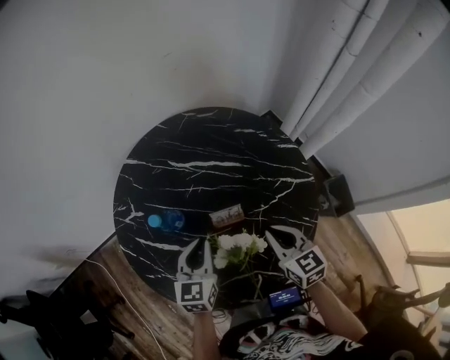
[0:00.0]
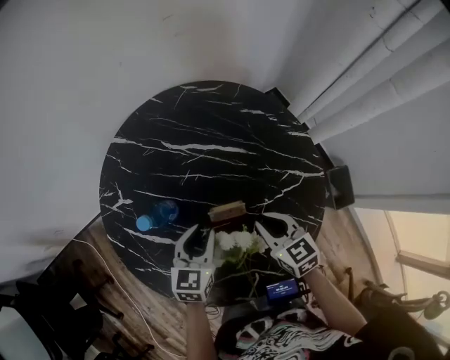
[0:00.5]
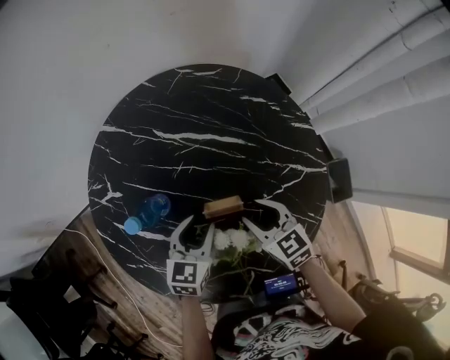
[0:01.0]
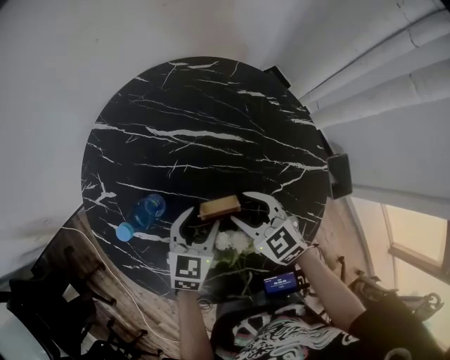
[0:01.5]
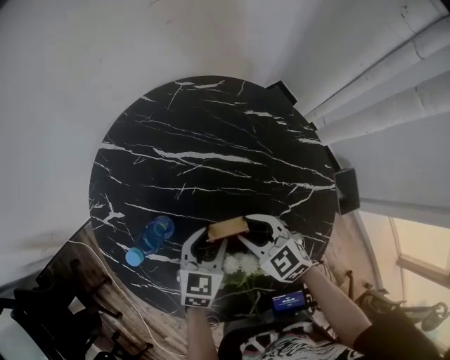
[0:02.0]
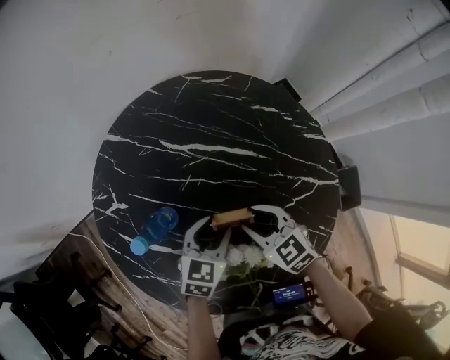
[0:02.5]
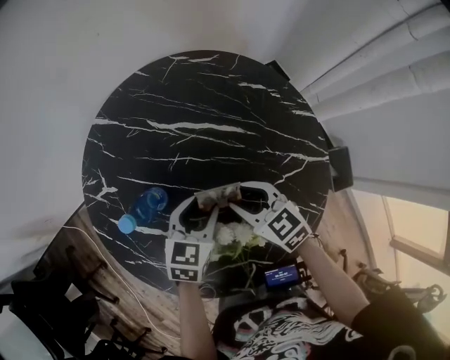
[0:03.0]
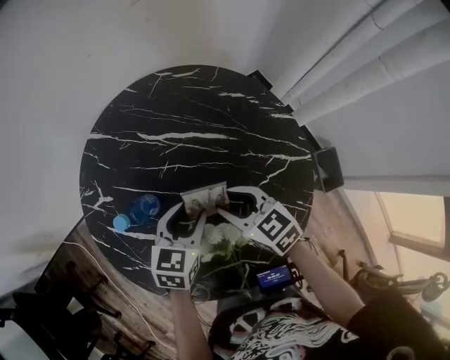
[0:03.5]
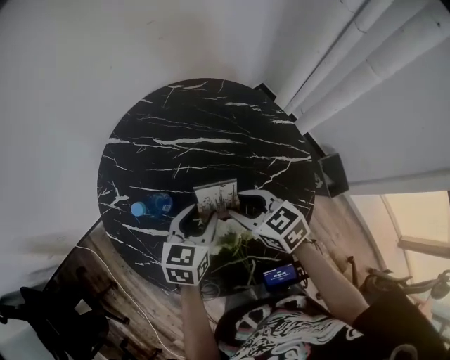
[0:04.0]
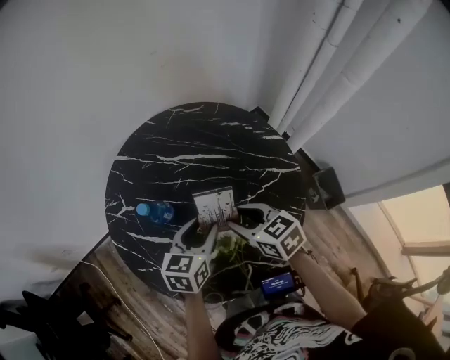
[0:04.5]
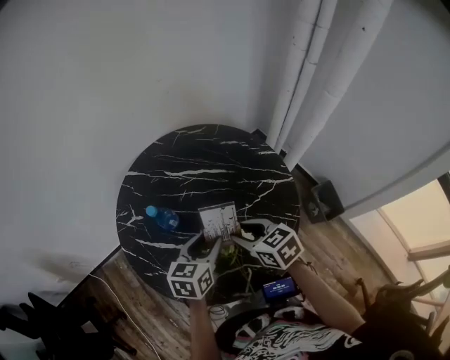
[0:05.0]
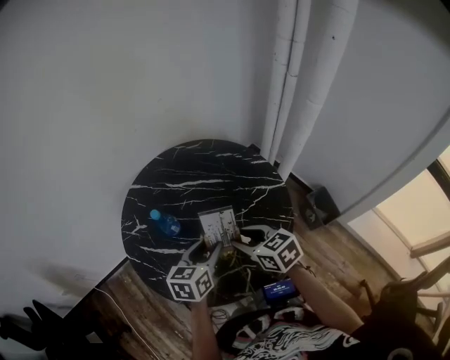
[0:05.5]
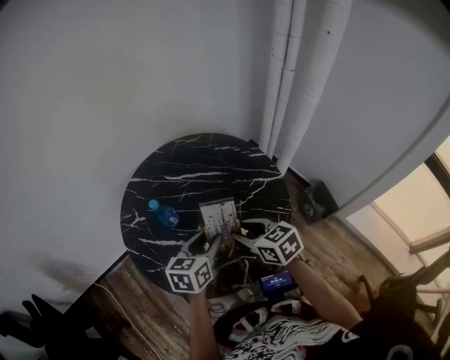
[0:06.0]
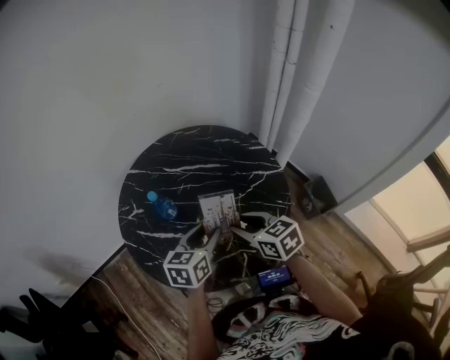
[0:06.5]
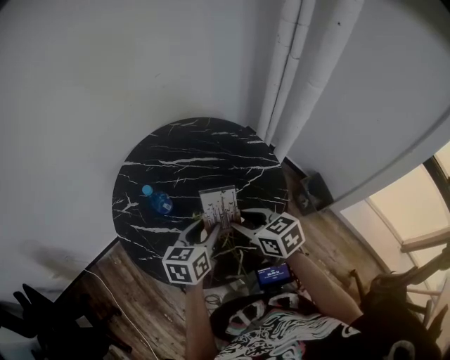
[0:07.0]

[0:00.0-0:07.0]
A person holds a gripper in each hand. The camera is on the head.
0:00.0 to 0:02.0: The right gripper moves downward, forward and to the left, about 15 cm, changes its angle by about 30 degrees, and opens. The left gripper shifts approximately 10 cm downward and to the right, turns by roughly 20 degrees, and opens its fingers.
0:02.0 to 0:03.5: The grippers both shift upward by roughly 5 cm.
0:03.5 to 0:05.0: Both grippers move backward and upward, some 15 cm.
0:05.0 to 0:07.0: The right gripper shifts by roughly 5 cm.

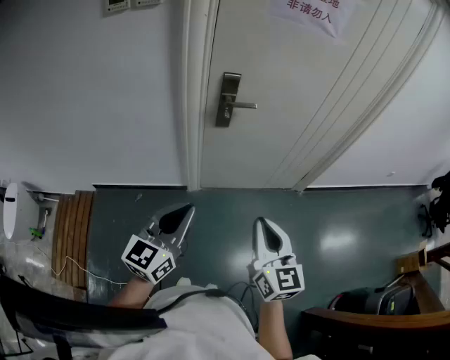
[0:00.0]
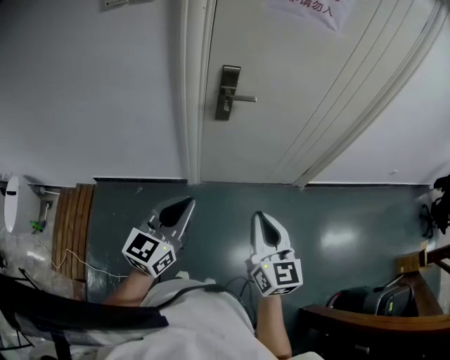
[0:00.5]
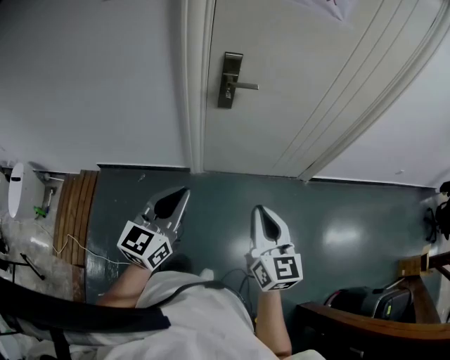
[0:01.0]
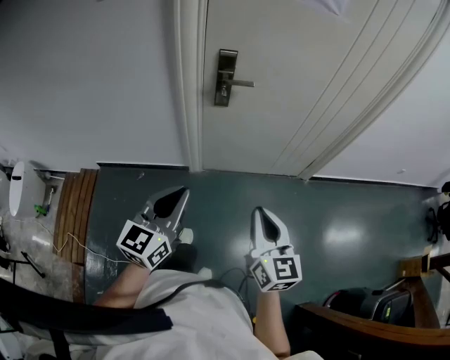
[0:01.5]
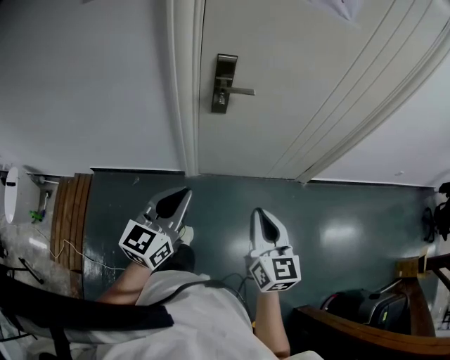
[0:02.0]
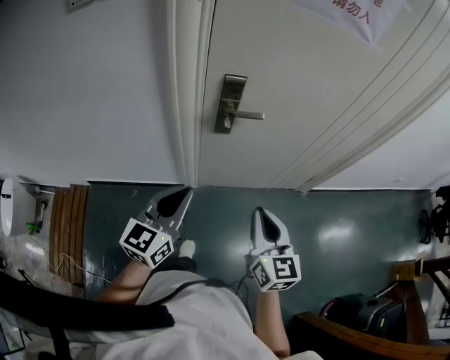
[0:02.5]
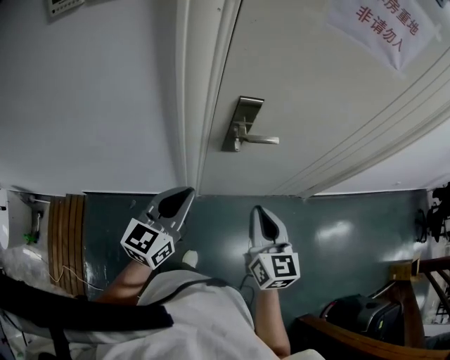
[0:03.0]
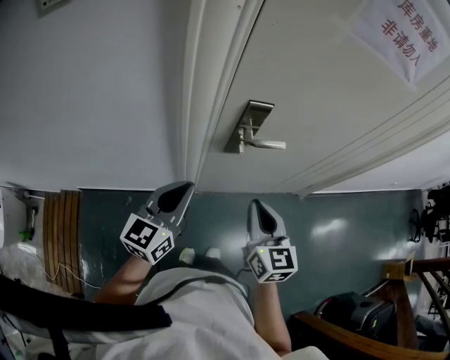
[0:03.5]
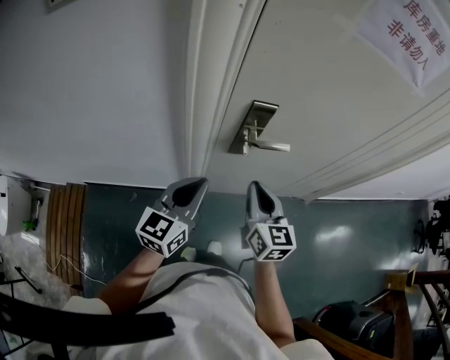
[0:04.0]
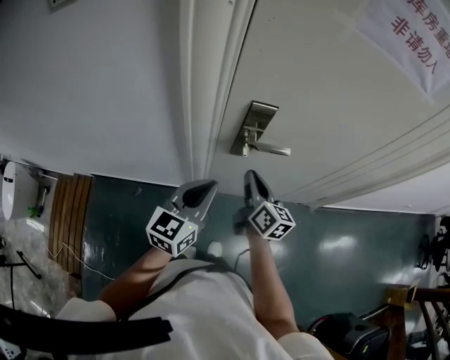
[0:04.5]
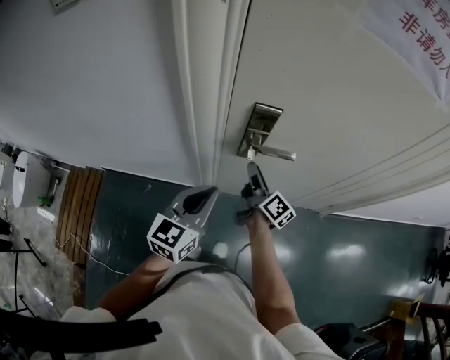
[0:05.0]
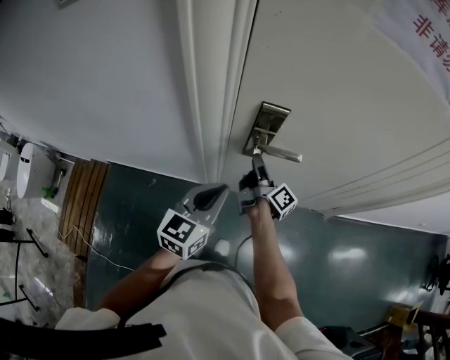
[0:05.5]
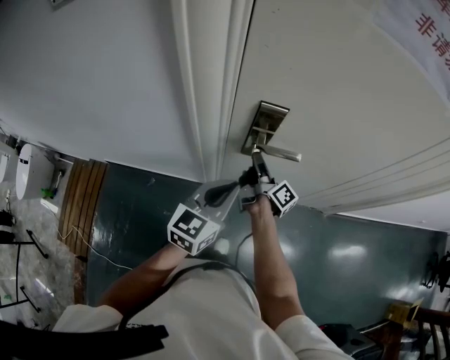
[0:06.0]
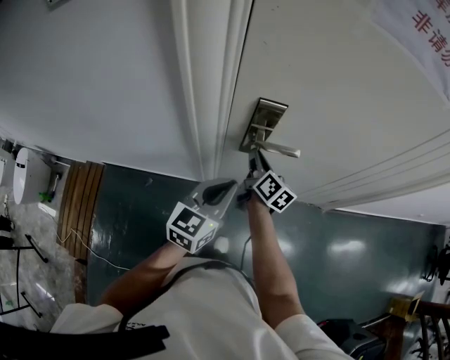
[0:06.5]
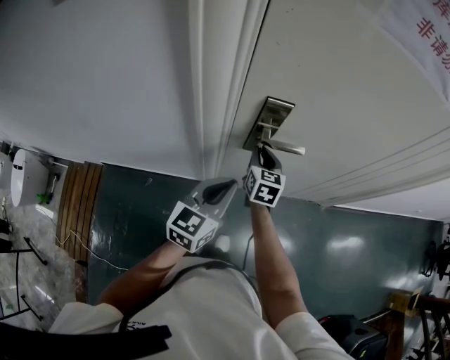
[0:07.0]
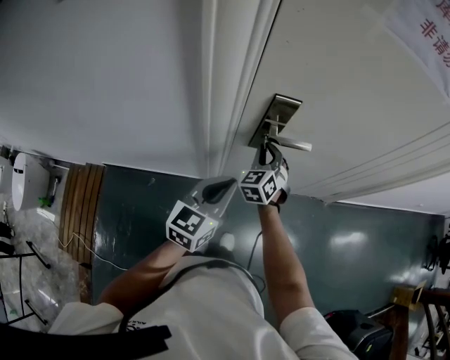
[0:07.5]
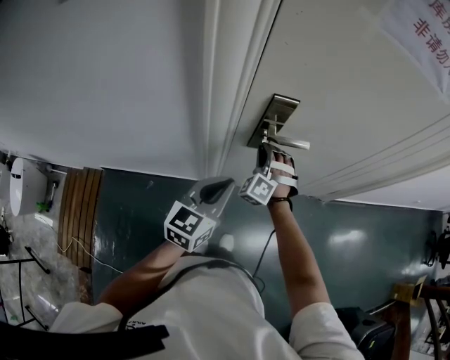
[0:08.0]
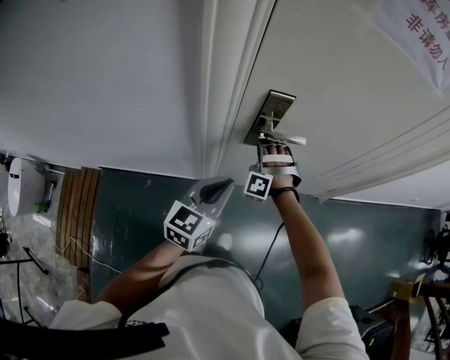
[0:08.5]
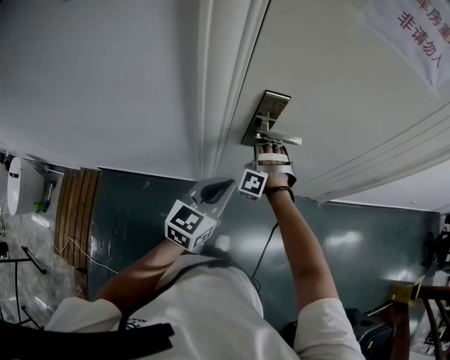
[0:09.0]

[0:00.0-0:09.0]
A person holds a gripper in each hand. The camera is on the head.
0:00.0 to 0:02.0: The left gripper is displaced forward by roughly 10 cm, while the right gripper is displaced forward and downward by about 10 cm.
0:02.0 to 0:04.5: The left gripper is displaced forward by some 30 cm, while the right gripper moves forward and to the left, about 40 cm, and swivels approximately 30 degrees.
0:04.5 to 0:07.0: The right gripper is displaced forward by some 10 cm, changes its angle by about 30 degrees, and opens, then closes once more.
0:07.0 to 0:09.0: The right gripper rolls counterclockwise, seen from behind, by approximately 100 degrees.

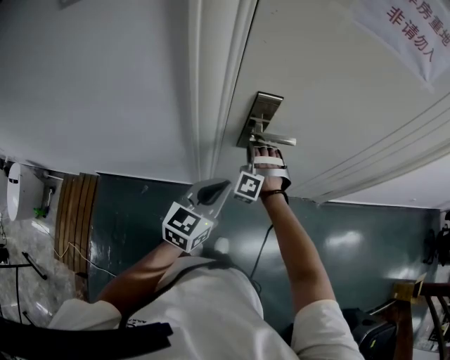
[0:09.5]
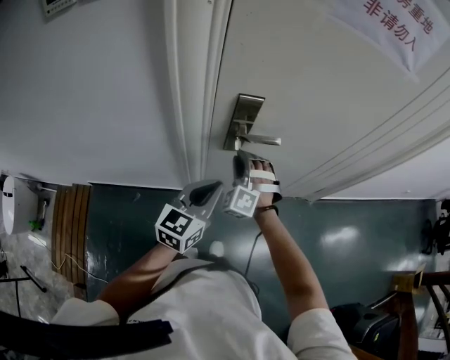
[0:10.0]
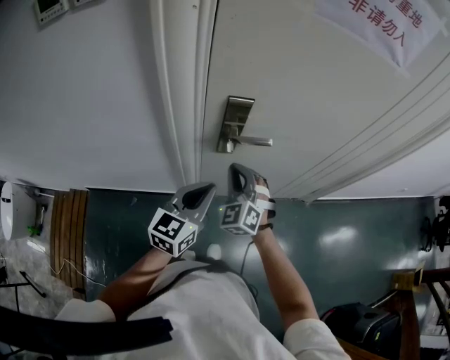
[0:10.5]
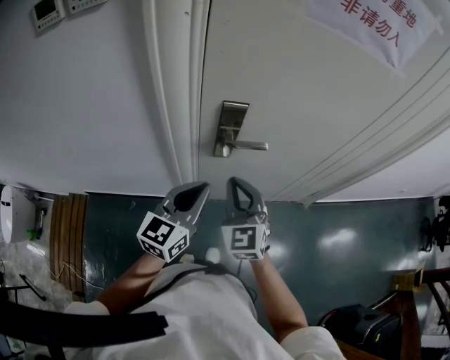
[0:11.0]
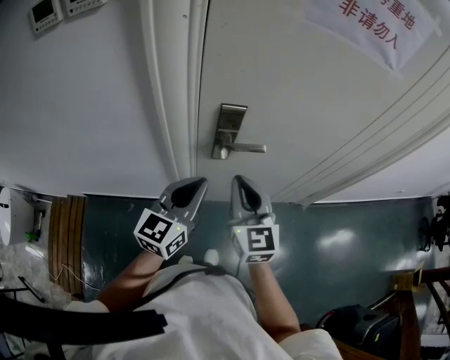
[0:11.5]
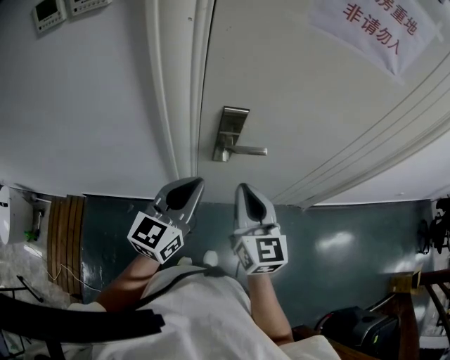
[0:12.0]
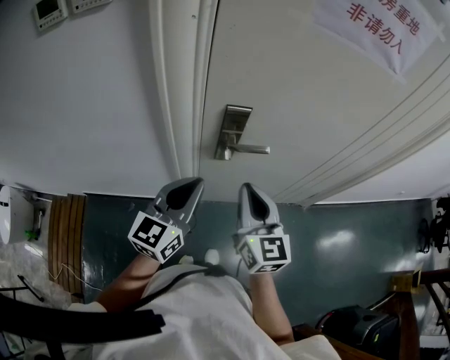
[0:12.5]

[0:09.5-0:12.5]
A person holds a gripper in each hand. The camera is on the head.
0:09.5 to 0:11.0: The right gripper goes roughly 20 cm upward, backward and to the right, and rotates around the line of its fingers by roughly 60 degrees, clockwise from behind.
0:11.0 to 0:12.5: The right gripper moves about 5 cm, and swivels some 30 degrees.

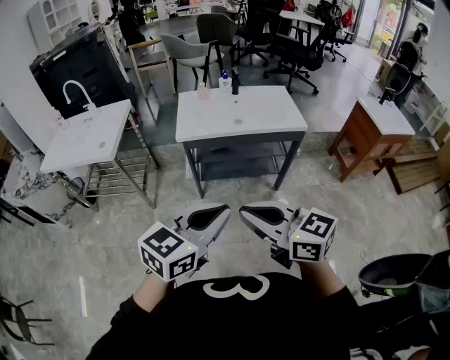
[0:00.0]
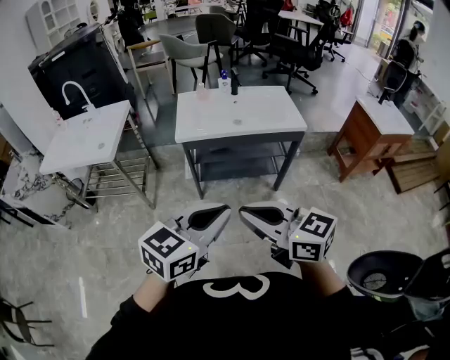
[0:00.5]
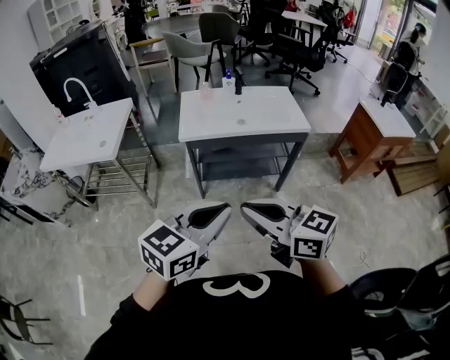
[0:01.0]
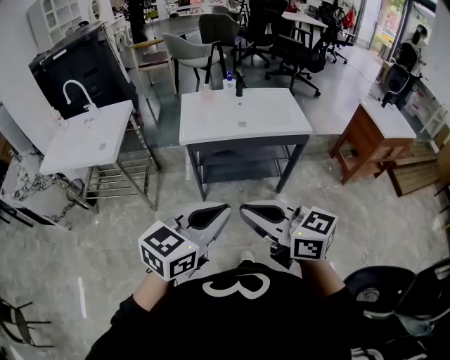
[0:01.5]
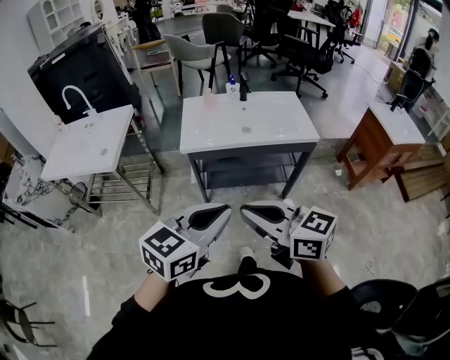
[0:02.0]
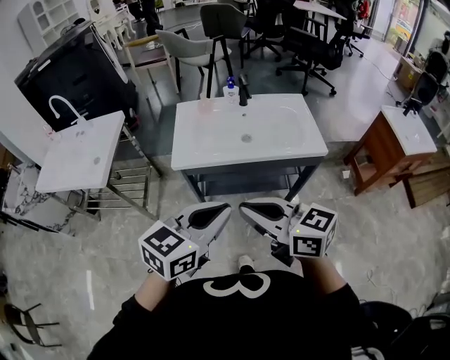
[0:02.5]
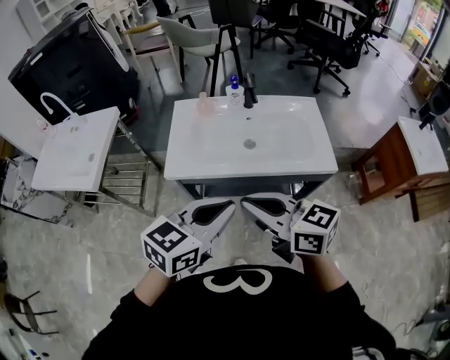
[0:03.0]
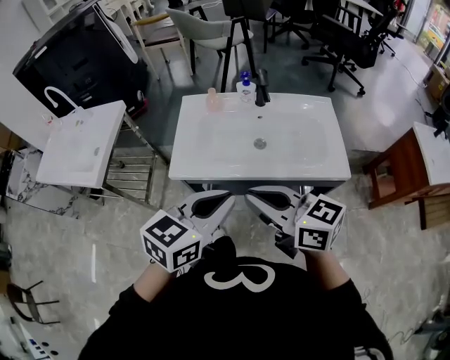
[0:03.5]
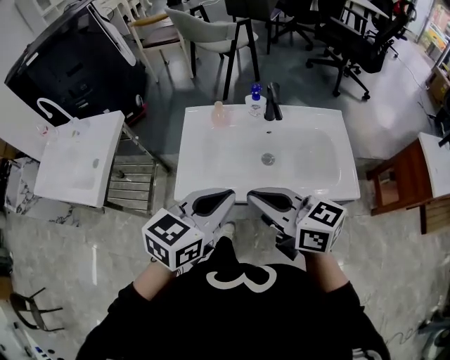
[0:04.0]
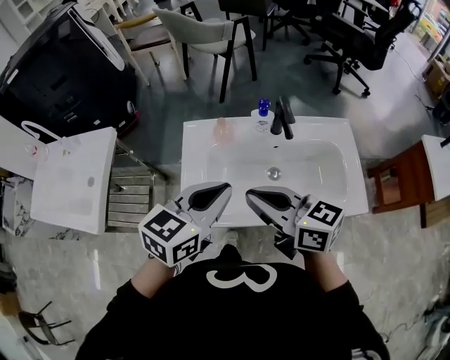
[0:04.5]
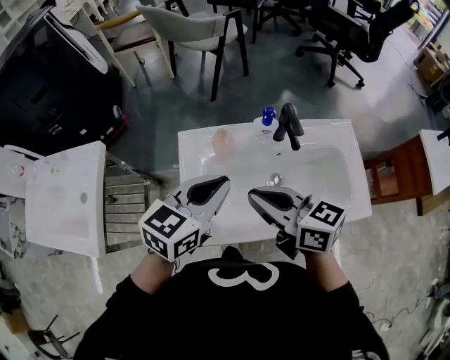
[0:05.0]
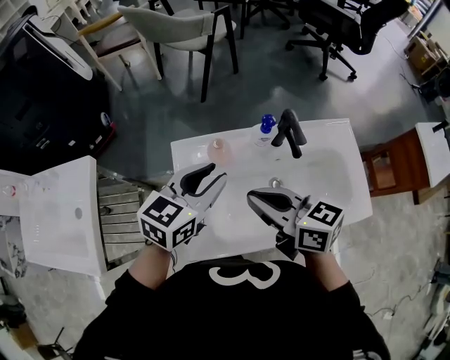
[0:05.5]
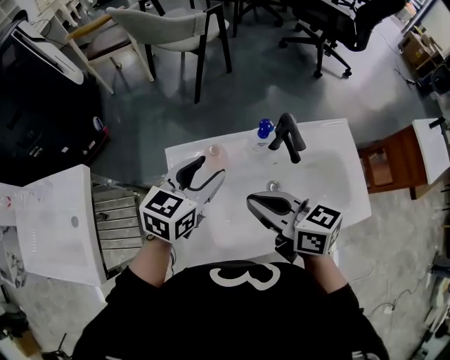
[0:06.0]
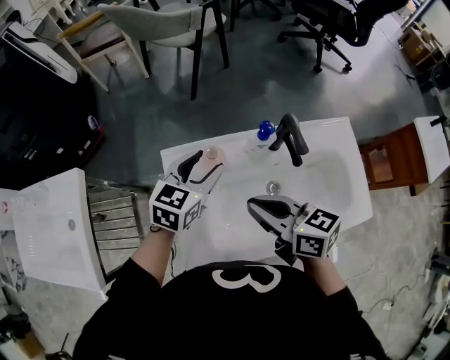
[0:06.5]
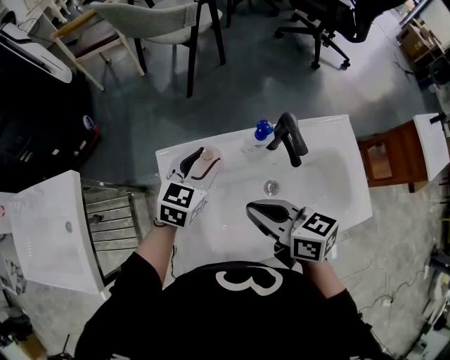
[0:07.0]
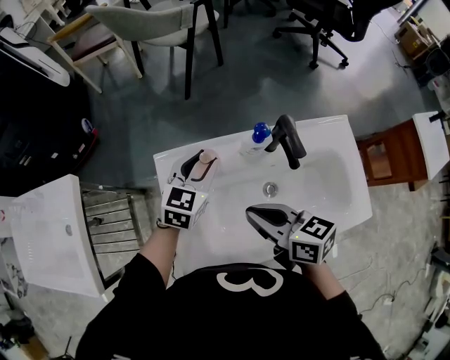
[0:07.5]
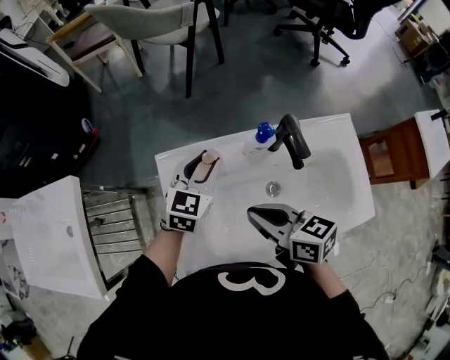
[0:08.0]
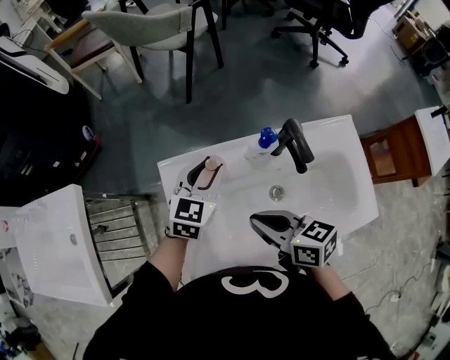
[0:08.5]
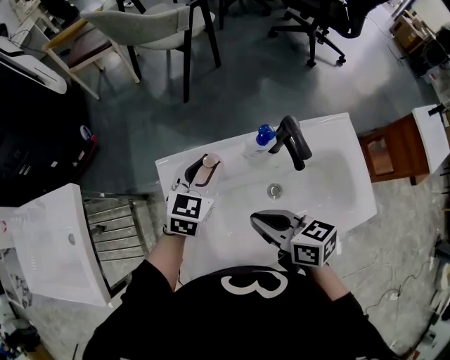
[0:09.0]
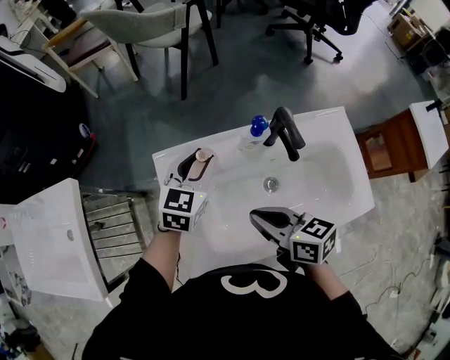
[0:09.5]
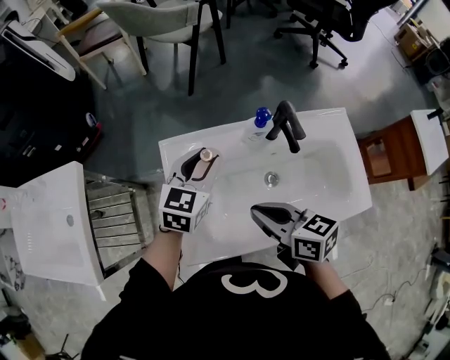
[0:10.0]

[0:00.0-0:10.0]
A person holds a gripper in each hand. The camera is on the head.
0:00.0 to 0:02.0: The grippers both shift forward by approximately 10 cm.
0:02.0 to 0:04.0: Both grippers move forward, about 40 cm.
0:04.0 to 0:06.0: The two grippers go about 25 cm forward. The left gripper opens its fingers.
0:06.0 to 0:08.0: The right gripper shifts roughly 5 cm downward; the left gripper is displaced downward and forward by roughly 10 cm.
0:08.0 to 0:10.0: The left gripper changes place by roughly 5 cm.
